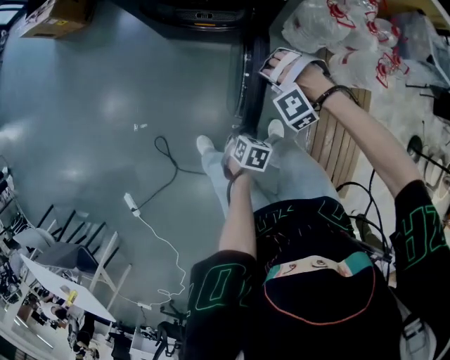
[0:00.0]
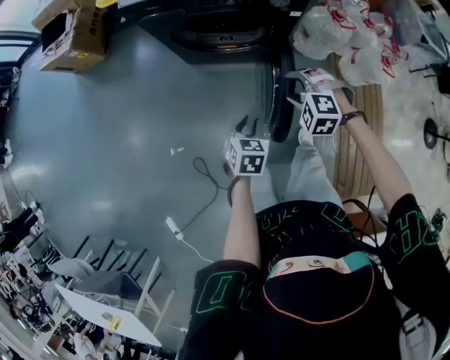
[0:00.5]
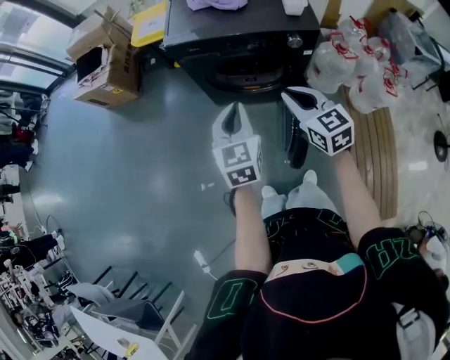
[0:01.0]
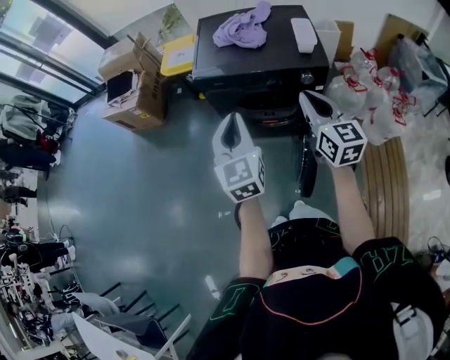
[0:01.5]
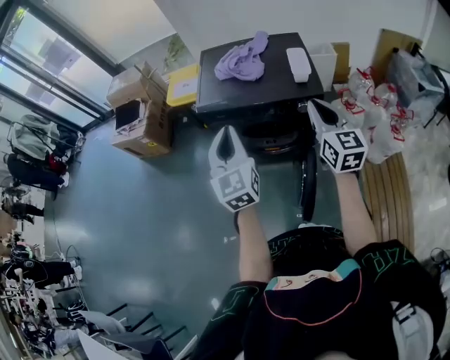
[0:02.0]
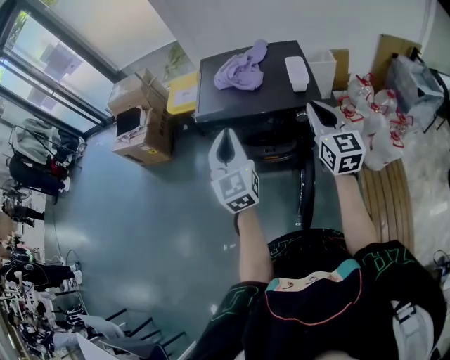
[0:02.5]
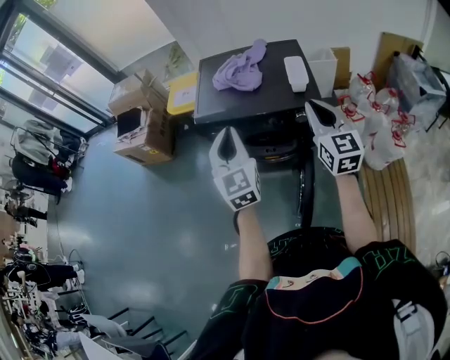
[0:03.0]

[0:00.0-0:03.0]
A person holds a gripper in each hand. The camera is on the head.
0:00.0 to 0:01.5: The left gripper heads upward, to the left and forward, covering about 60 cm, tilts its fingers approximately 60 degrees upward, and closes up, while the right gripper heads upward, covering about 40 cm, rotates around the line of its fingers by some 110 degrees, clockwise from behind, and closes its fingers.
0:01.5 to 0:03.0: The right gripper shifts roughly 10 cm to the right, forward and upward. The left gripper is displaced forward and upward by about 10 cm.

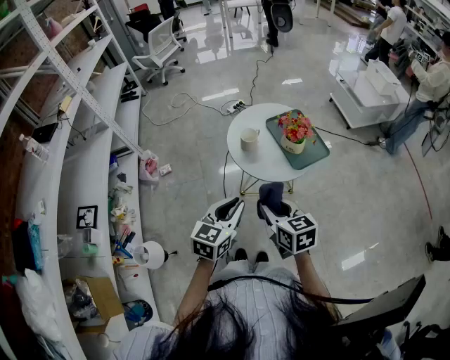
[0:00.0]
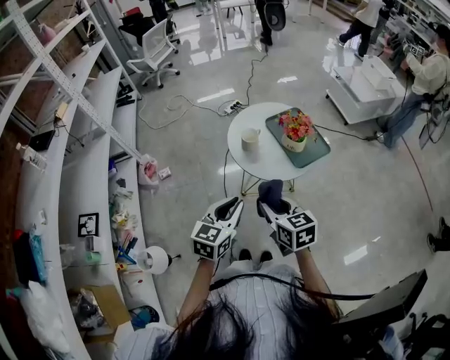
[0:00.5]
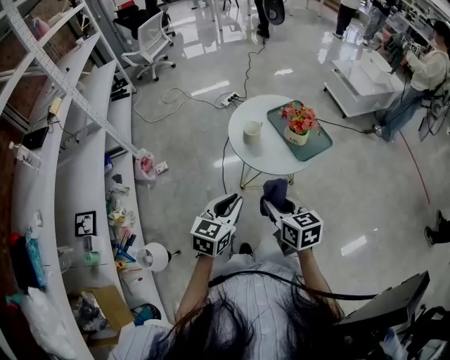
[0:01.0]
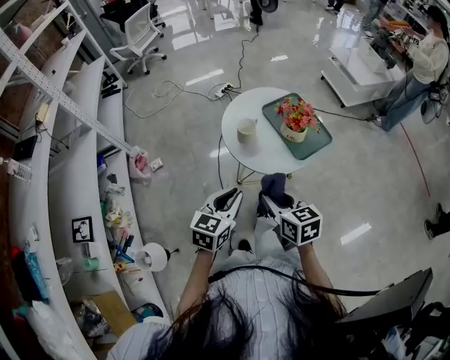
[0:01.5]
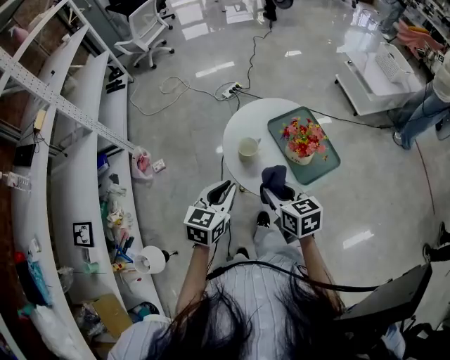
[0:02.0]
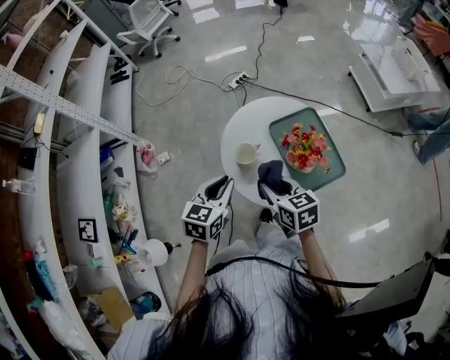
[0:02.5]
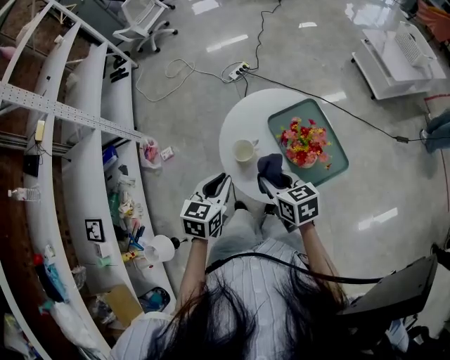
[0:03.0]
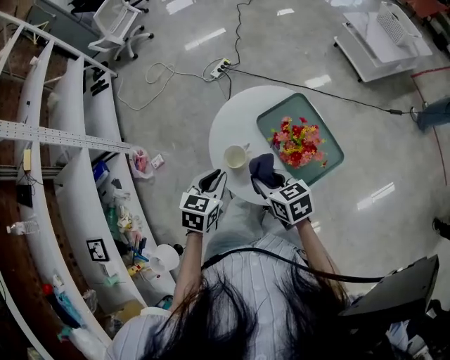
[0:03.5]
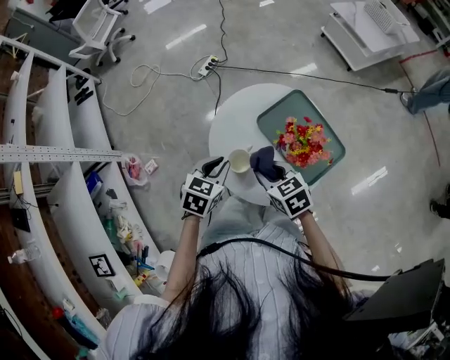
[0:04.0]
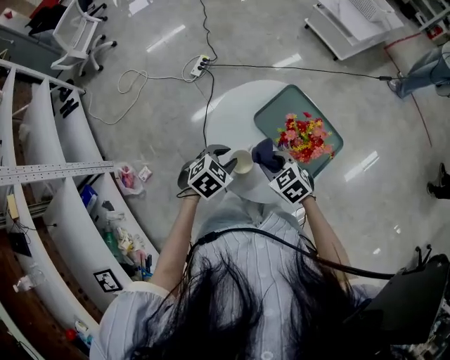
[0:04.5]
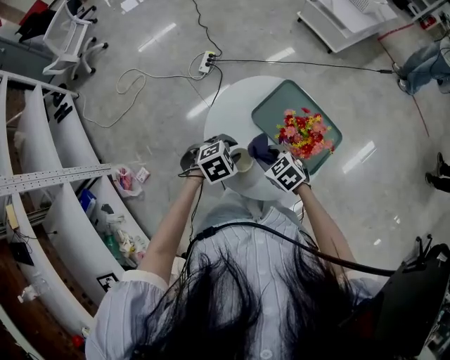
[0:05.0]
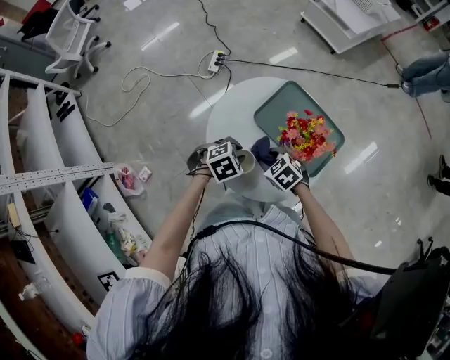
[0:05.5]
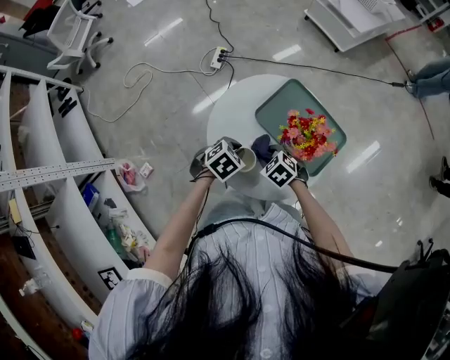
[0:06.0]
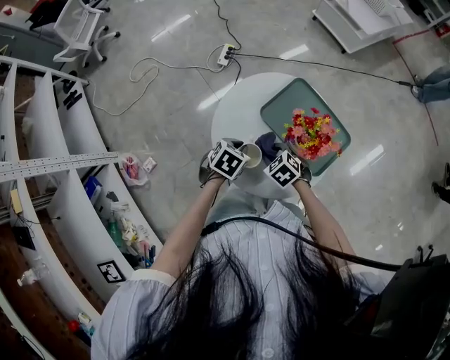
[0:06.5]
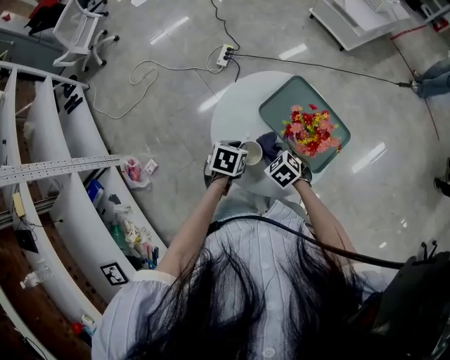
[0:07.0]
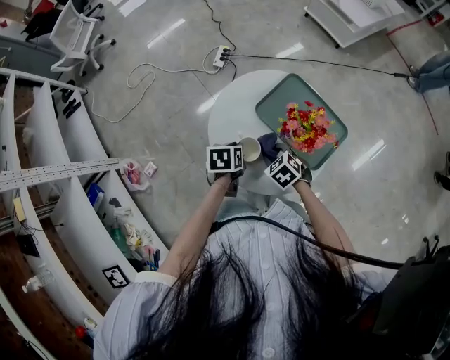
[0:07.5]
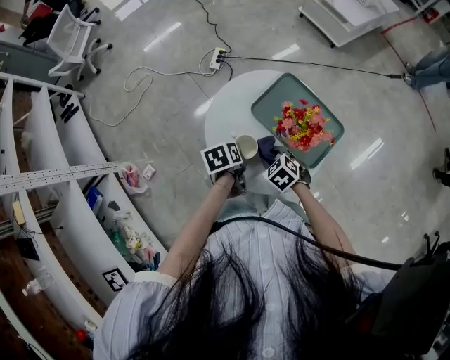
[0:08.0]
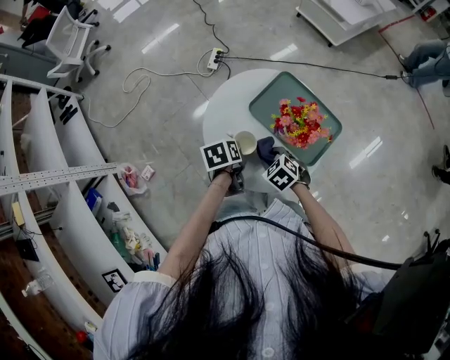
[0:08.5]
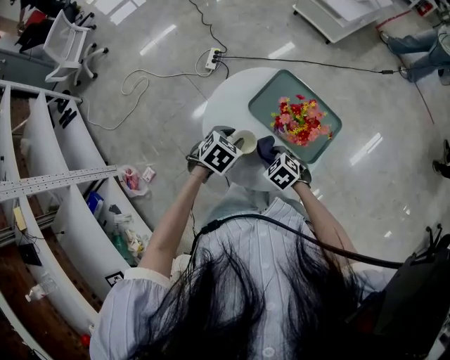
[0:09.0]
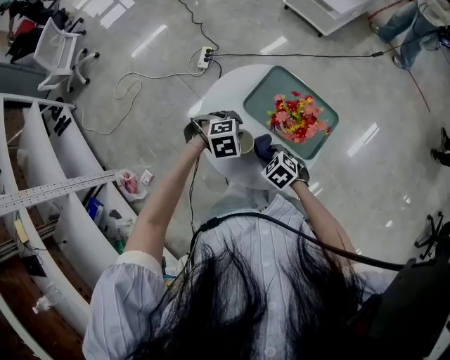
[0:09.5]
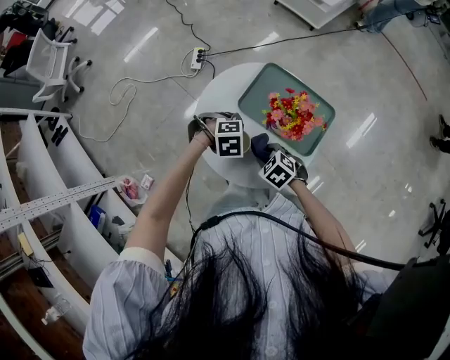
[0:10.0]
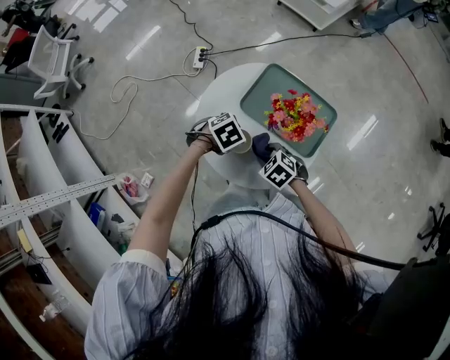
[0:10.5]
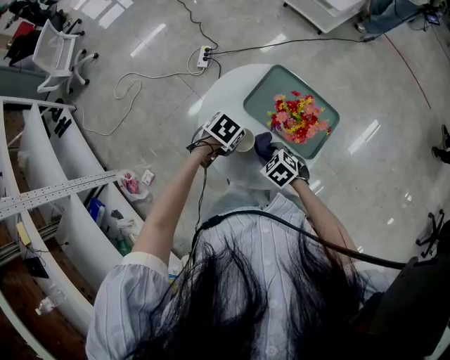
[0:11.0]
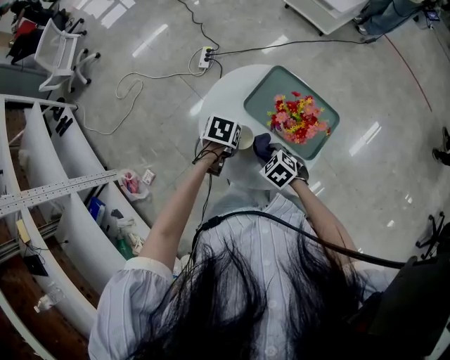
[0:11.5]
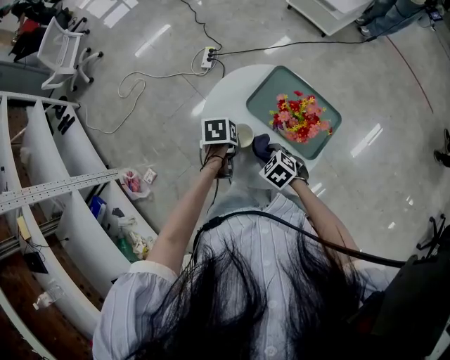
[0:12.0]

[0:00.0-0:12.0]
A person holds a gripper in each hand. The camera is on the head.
0:00.0 to 0:02.0: Both grippers move forward, approximately 20 cm.
0:02.0 to 0:04.0: Both grippers travel together forward and downward, approximately 15 cm. The left gripper changes its angle by some 30 degrees.
0:04.0 to 0:06.0: The grippers both shift downward by approximately 10 cm. The left gripper turns by some 40 degrees, while the right gripper turns by some 20 degrees.
0:06.0 to 0:08.0: The left gripper twists some 70 degrees counterclockwise, seen from behind.
0:08.0 to 0:10.0: The left gripper changes place by about 10 cm, and twists about 110 degrees clockwise, seen from behind.
0:10.0 to 0:12.0: The left gripper moves some 5 cm, and rotates around the line of its fingers by approximately 100 degrees, counterclockwise from behind.

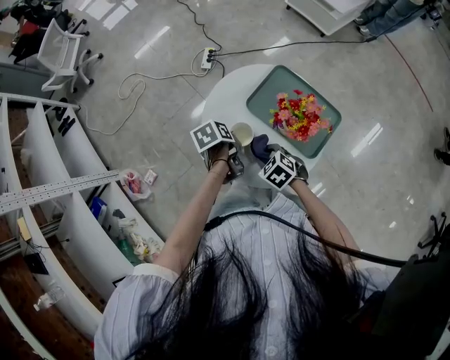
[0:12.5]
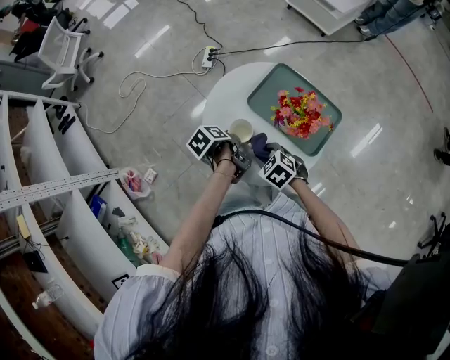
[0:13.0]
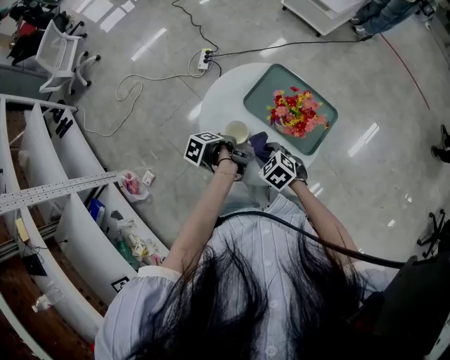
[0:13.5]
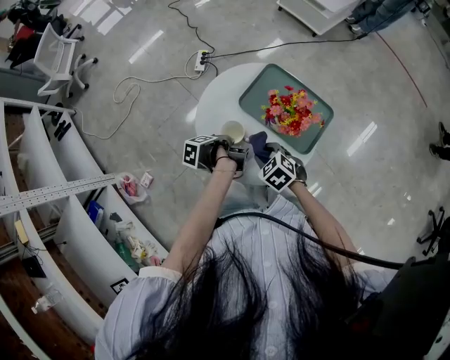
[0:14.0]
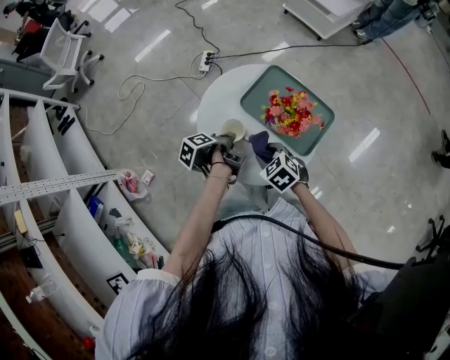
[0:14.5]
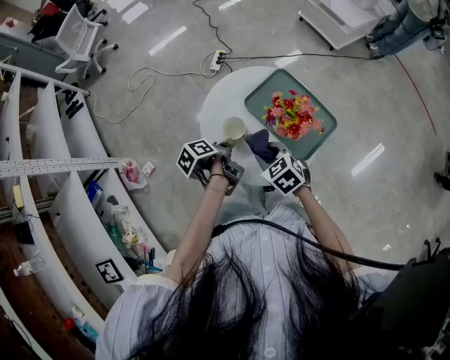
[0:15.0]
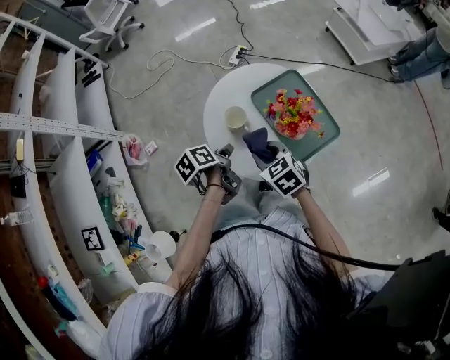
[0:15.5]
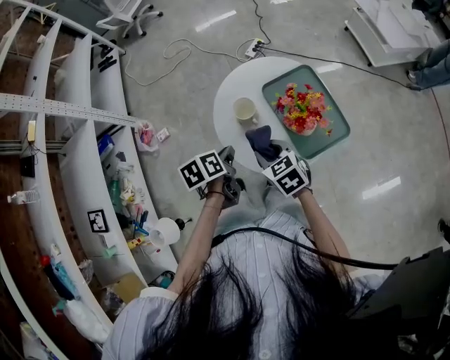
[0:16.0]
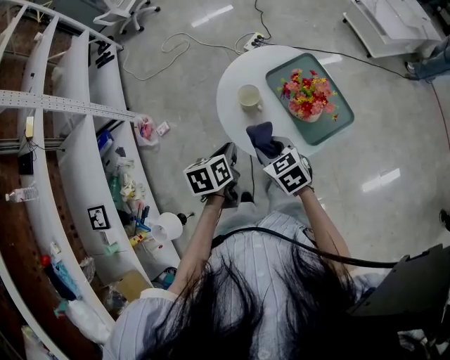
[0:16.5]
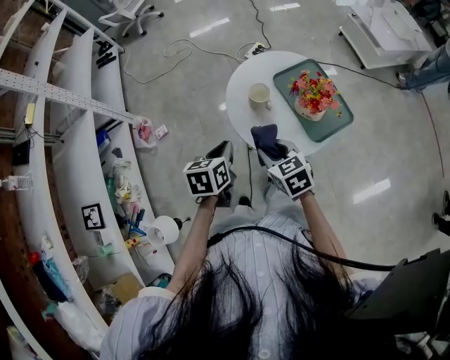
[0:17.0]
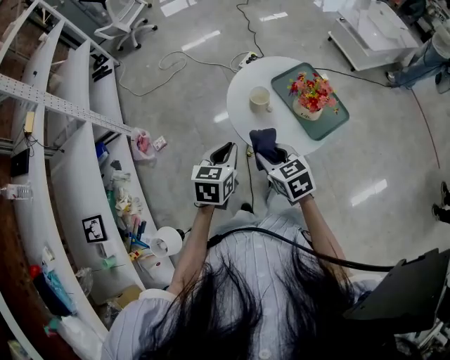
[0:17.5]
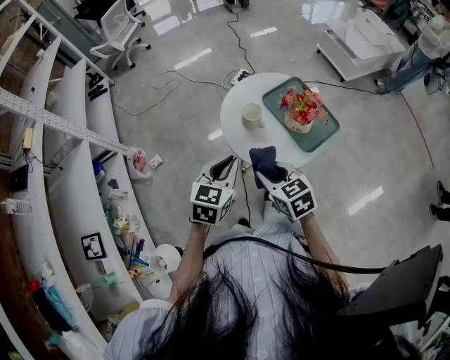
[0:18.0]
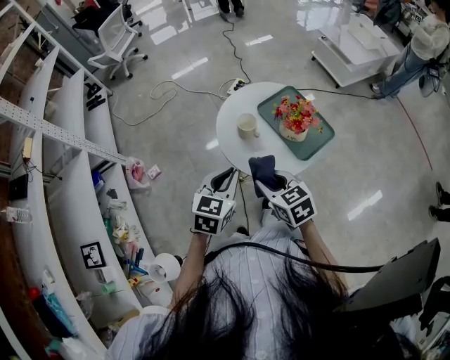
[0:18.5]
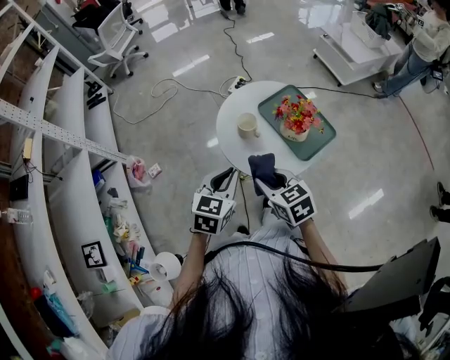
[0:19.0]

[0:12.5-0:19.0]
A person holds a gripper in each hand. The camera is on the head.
0:12.5 to 0:14.5: The left gripper rotates around the line of its fingers by about 40 degrees, counterclockwise from behind.
0:14.5 to 0:17.0: The left gripper travels backward, to the left and upward by approximately 20 cm, and rotates around the line of its fingers by about 60 degrees, clockwise from behind. The right gripper goes about 15 cm backward, upward and to the left.
0:17.0 to 0:19.0: Both grippers travel together upward, approximately 5 cm. The left gripper turns by some 30 degrees.

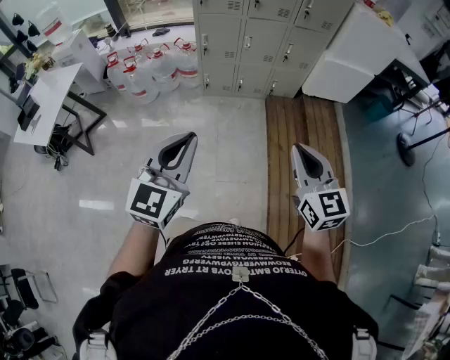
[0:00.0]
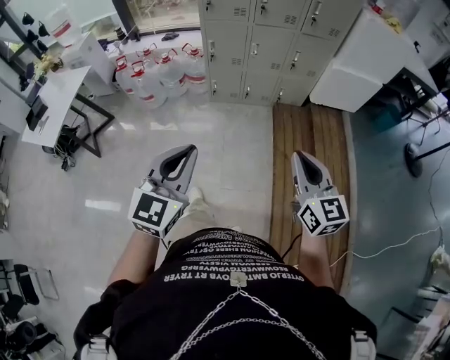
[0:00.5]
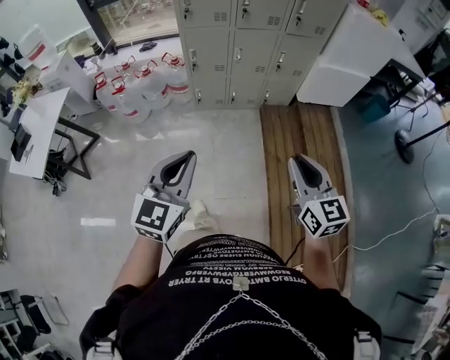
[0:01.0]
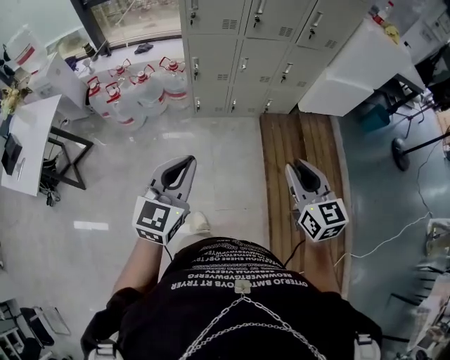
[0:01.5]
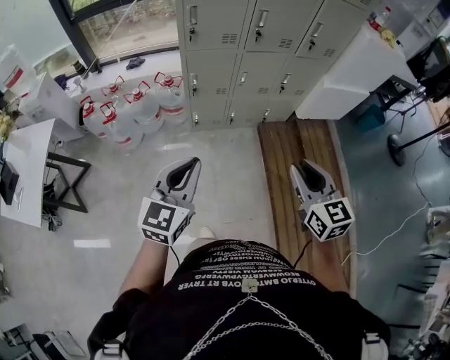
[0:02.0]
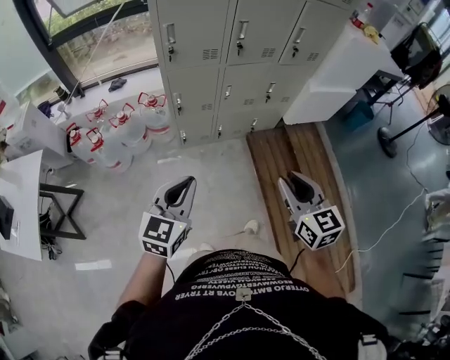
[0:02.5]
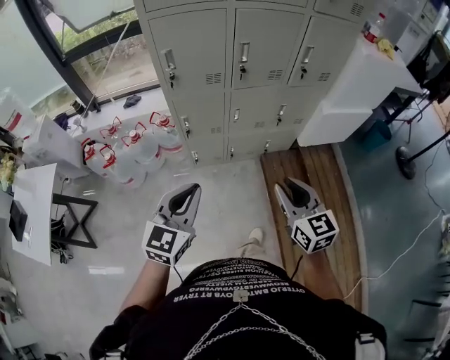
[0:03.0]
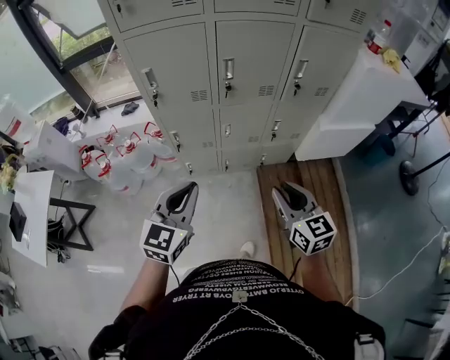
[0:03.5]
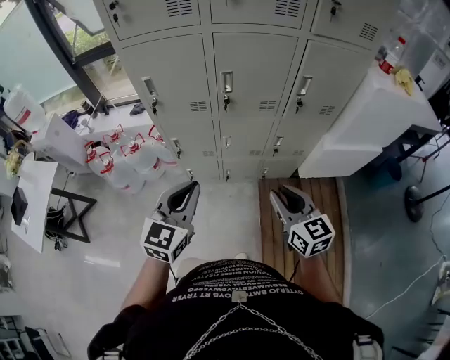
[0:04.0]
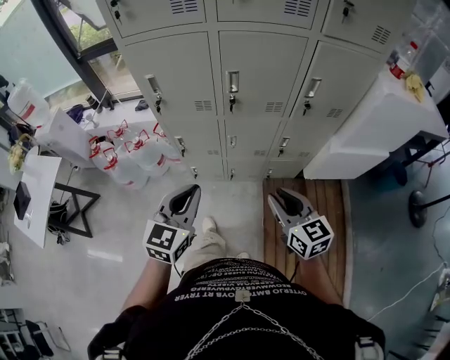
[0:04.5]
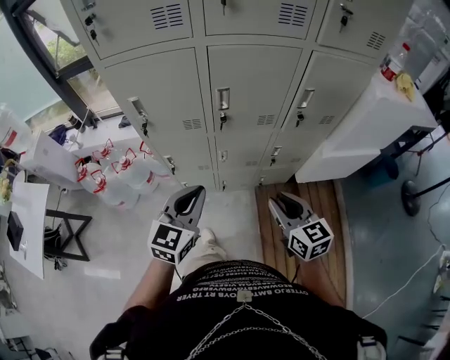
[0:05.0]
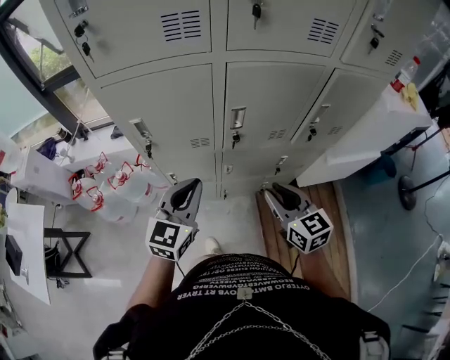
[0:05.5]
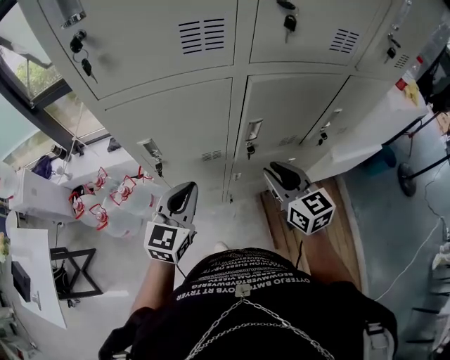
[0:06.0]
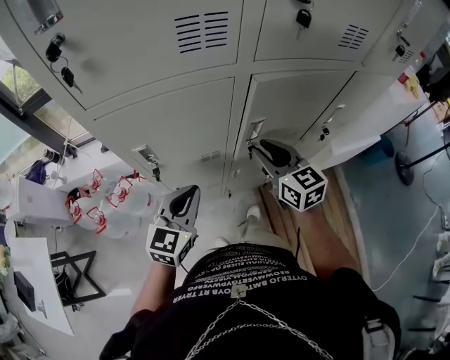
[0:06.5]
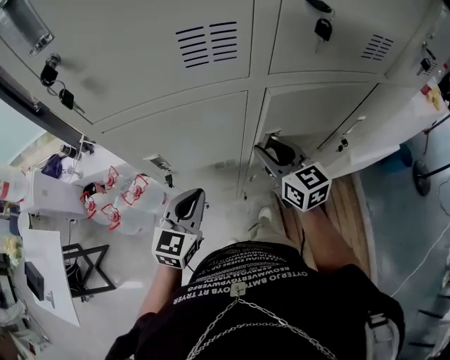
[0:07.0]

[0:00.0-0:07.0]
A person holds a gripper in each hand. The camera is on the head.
0:00.0 to 0:02.0: The grippers both shift forward and to the left by some 30 cm. The right gripper opens up.
0:02.0 to 0:03.5: The grippers both shift forward and to the right by approximately 25 cm.
0:03.5 to 0:05.0: The left gripper moves forward and to the right, about 15 cm. Meanwhile the right gripper moves forward, some 15 cm.
0:05.0 to 0:07.0: The two grippers go about 30 cm forward and to the left.
